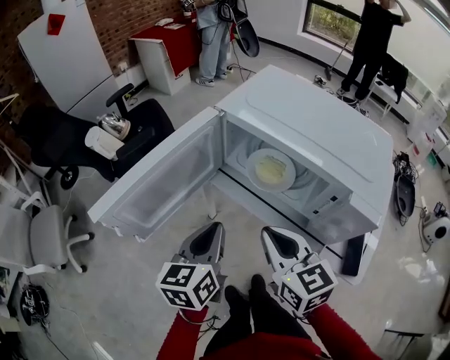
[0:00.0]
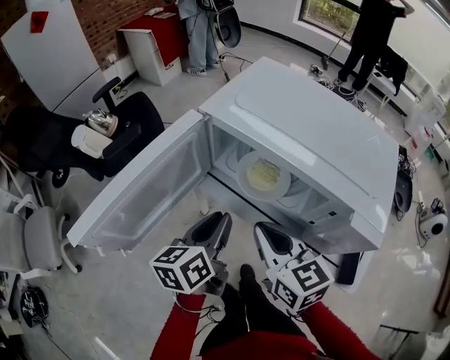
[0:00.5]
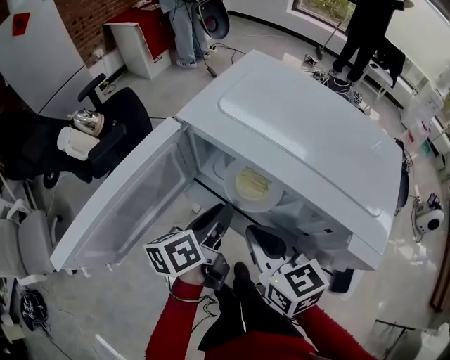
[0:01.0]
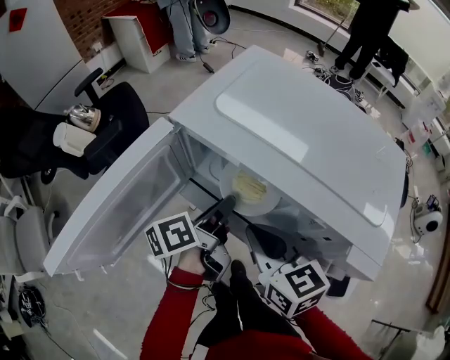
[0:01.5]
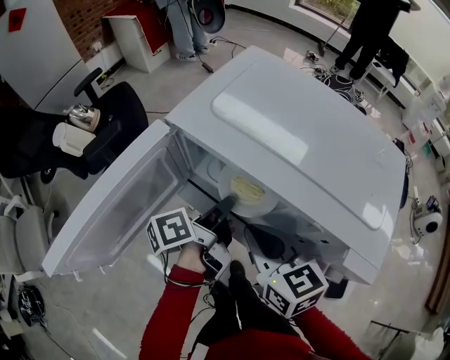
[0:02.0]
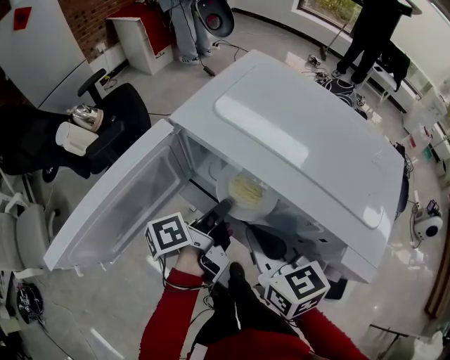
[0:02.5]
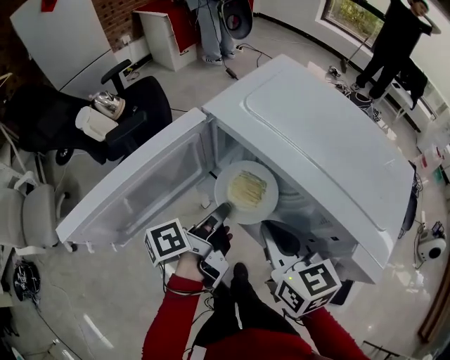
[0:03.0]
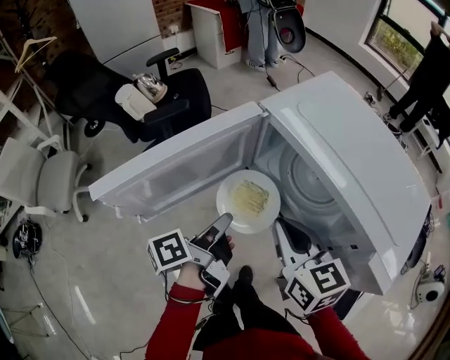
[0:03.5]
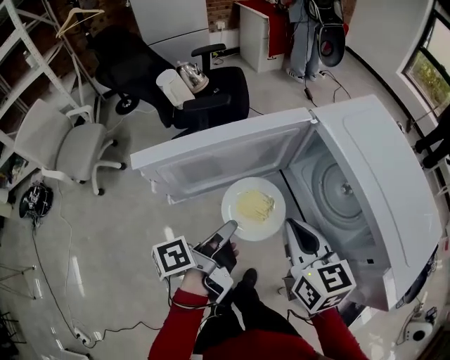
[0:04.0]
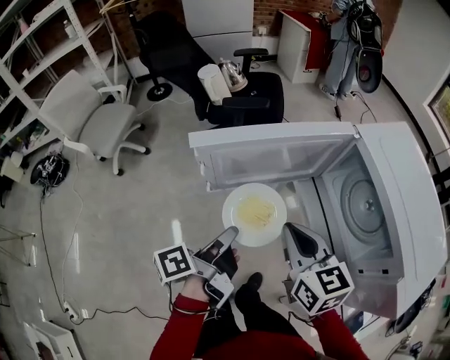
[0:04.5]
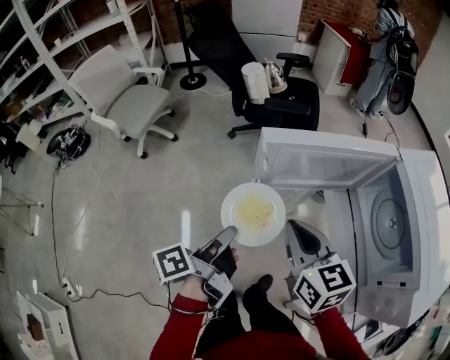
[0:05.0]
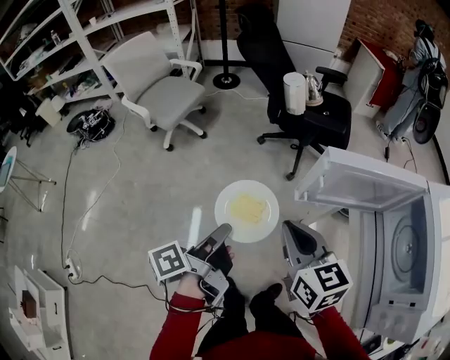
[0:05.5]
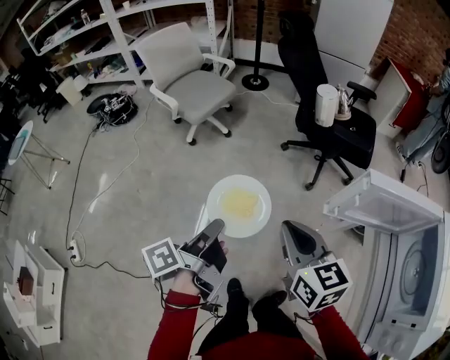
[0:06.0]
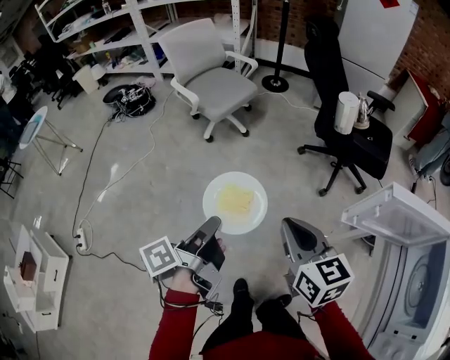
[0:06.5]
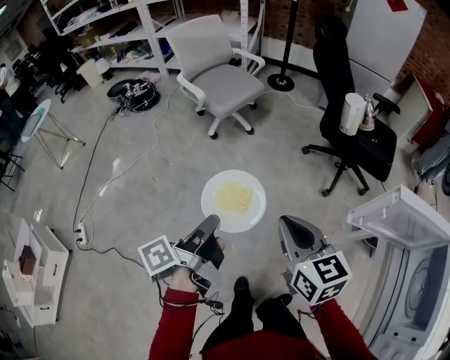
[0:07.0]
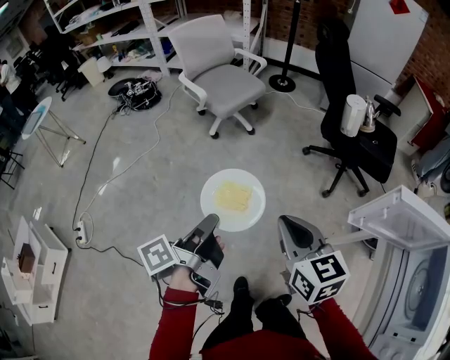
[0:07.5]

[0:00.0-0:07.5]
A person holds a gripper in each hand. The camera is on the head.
0:00.0 to 0:02.0: The left gripper travels forward, to the right and downward by some 20 cm, and rotates around the line of its fingers by approximately 50 degrees, counterclockwise from behind. Meanwhile the right gripper travels forward by about 10 cm.
0:02.0 to 0:04.0: The right gripper ends up some 10 cm from where it was, and swivels about 20 degrees. The left gripper changes place by roughly 20 cm, and swivels roughly 40 degrees.
0:04.0 to 0:05.5: The right gripper moves roughly 30 cm, and turns by approximately 30 degrees. Meanwhile the left gripper ends up roughly 30 cm from where it was, and rotates some 30 degrees.
0:05.5 to 0:07.5: The grippers both shift to the left by about 15 cm. The left gripper changes its angle by about 20 degrees.

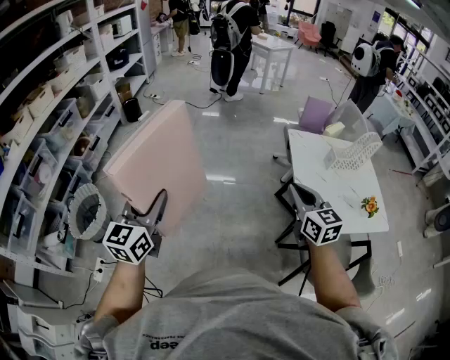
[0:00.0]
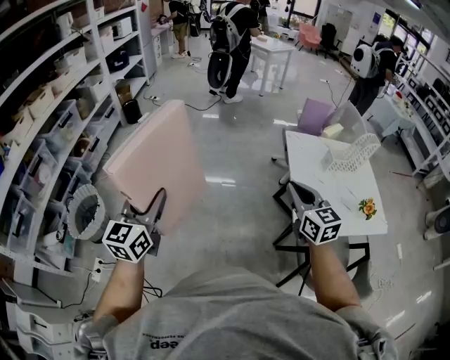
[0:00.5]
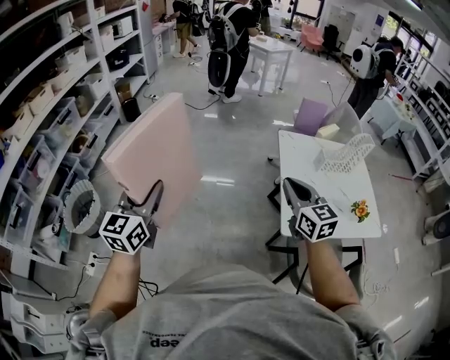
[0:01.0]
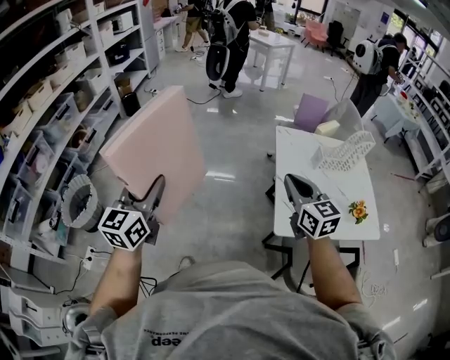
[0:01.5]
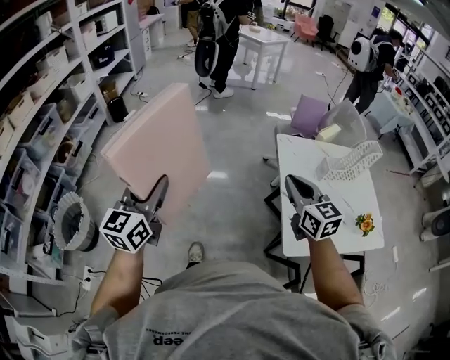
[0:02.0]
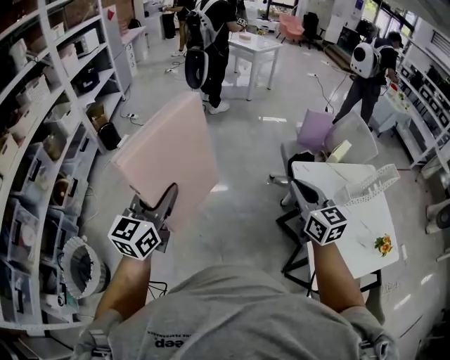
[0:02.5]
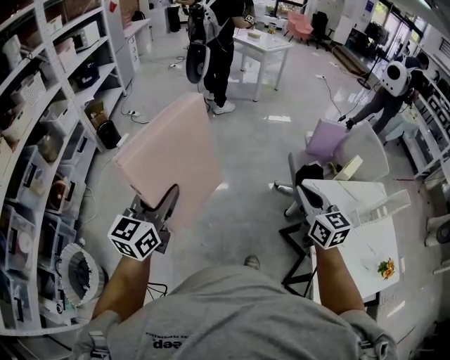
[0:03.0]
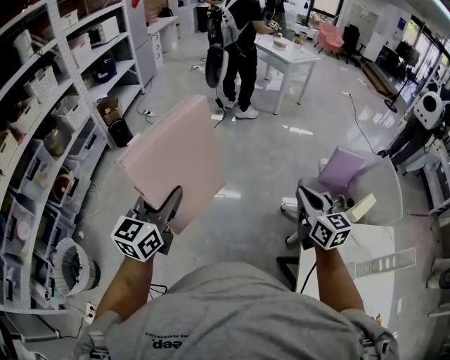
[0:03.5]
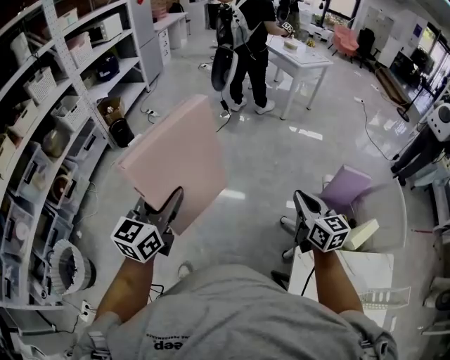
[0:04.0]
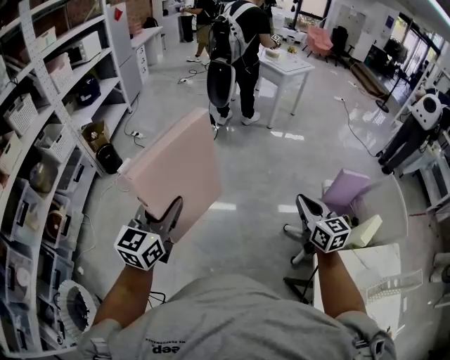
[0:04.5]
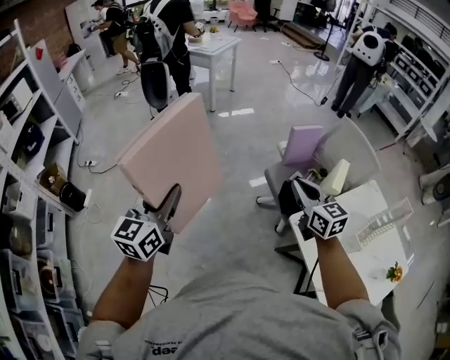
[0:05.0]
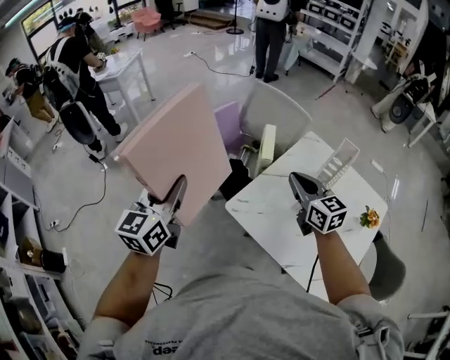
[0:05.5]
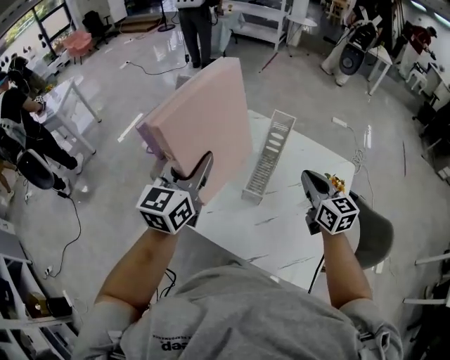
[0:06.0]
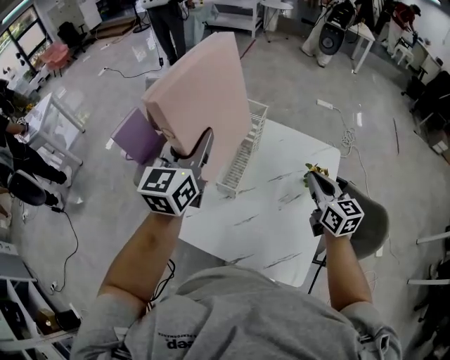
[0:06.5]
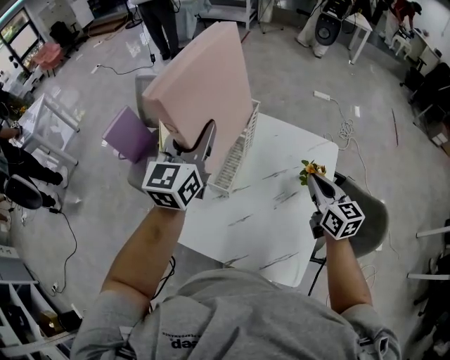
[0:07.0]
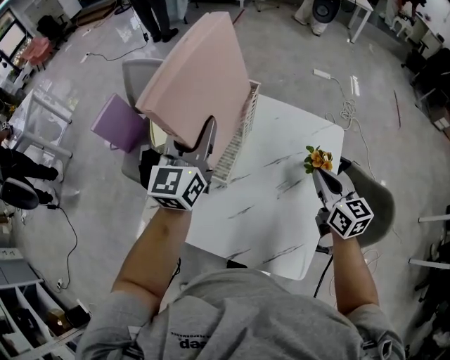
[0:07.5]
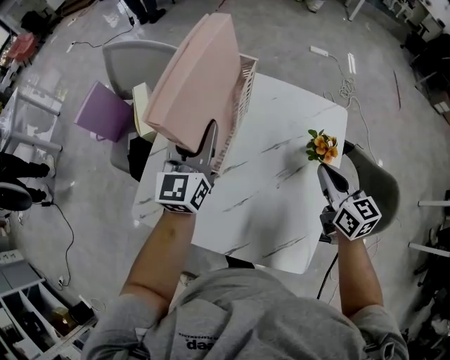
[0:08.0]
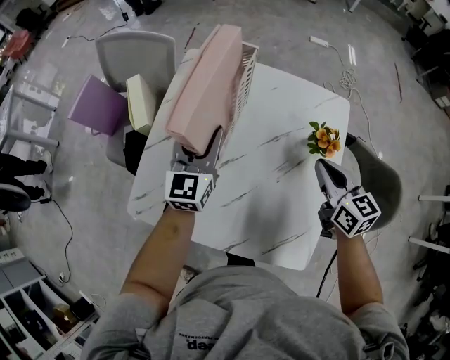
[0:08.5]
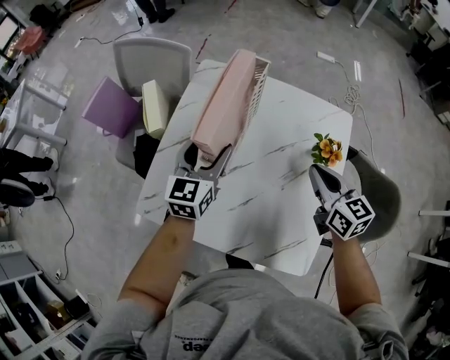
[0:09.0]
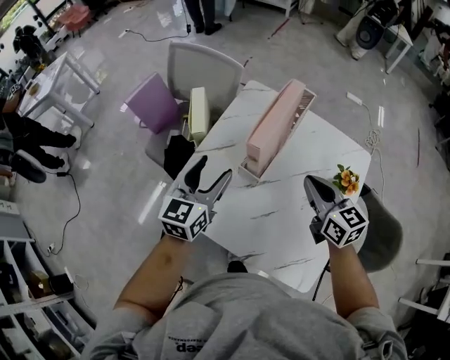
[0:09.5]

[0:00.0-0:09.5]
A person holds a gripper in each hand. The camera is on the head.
0:00.0 to 0:02.0: Both grippers move forward and to the right, some 15 cm.
0:02.0 to 0:04.0: Both grippers are carried forward, about 60 cm.
0:04.0 to 0:05.5: The two grippers travel together, approximately 50 cm. The left gripper changes its angle by some 50 degrees; the right gripper rotates roughly 50 degrees.
0:05.5 to 0:07.5: The two grippers travel together, some 50 cm. The left gripper rotates approximately 30 degrees. Meanwhile the right gripper rotates roughly 30 degrees.
0:07.5 to 0:09.5: The left gripper moves backward, downward and to the left, approximately 15 cm, and opens up. The right gripper heads to the left, covering roughly 15 cm.

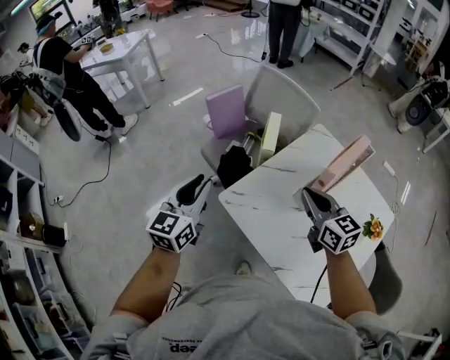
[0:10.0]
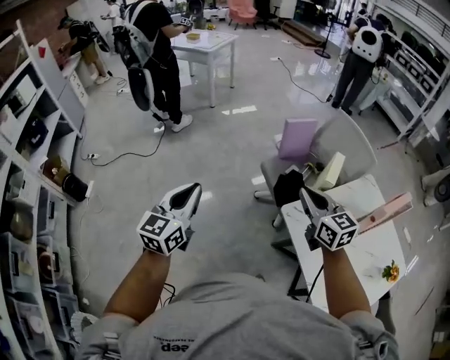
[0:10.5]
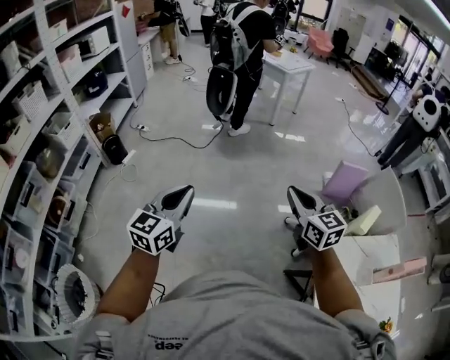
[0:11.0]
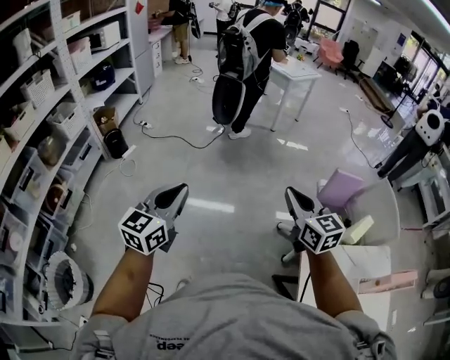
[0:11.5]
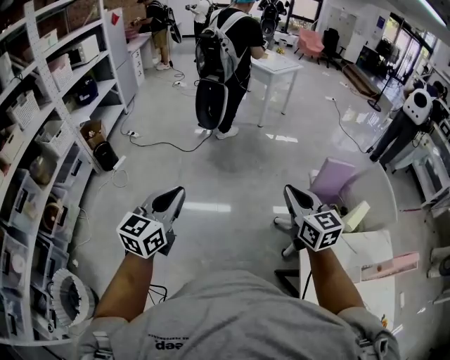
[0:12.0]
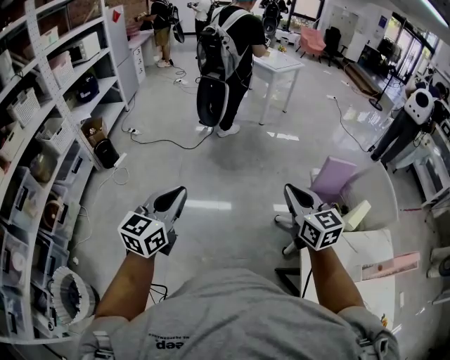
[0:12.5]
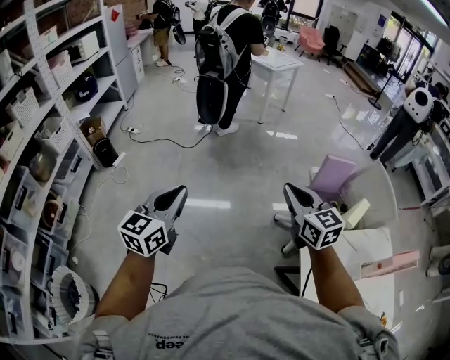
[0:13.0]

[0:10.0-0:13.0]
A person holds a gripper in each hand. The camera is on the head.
0:10.0 to 0:11.5: Both grippers are carried some 50 cm. The right gripper changes its angle by some 40 degrees, while the left gripper rotates approximately 40 degrees.
0:11.5 to 0:13.0: The grippers stay close to where they were, moving slightly.

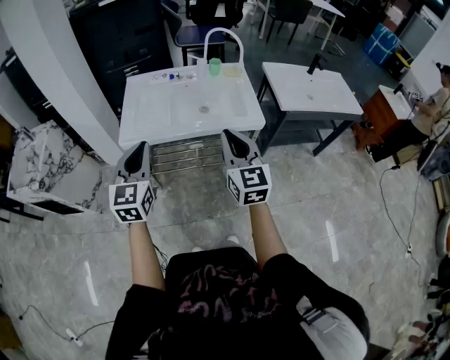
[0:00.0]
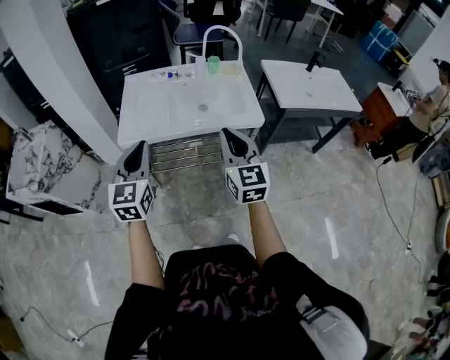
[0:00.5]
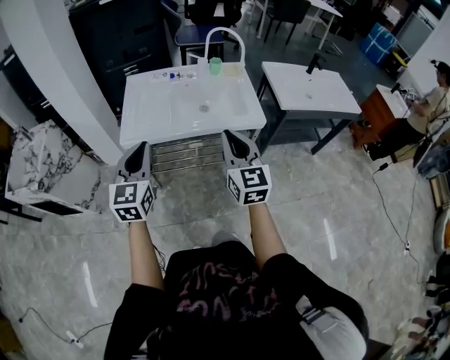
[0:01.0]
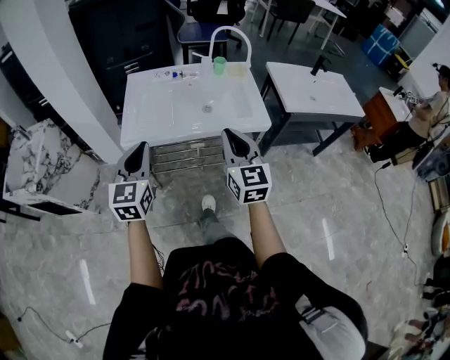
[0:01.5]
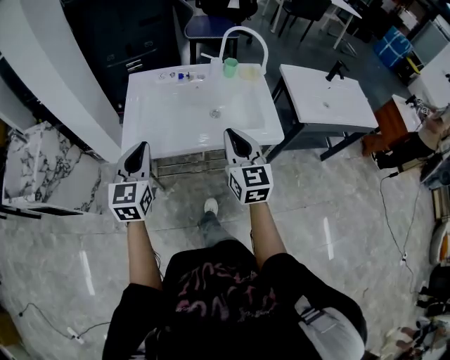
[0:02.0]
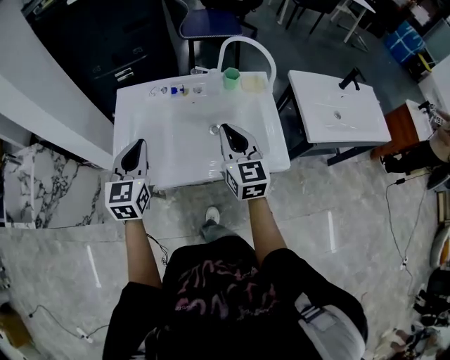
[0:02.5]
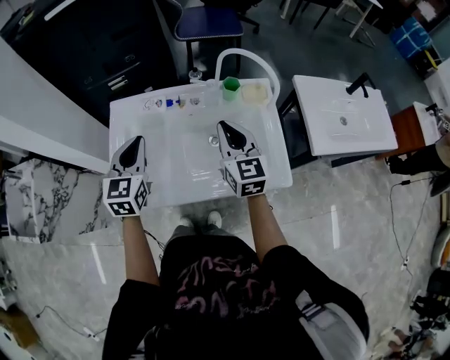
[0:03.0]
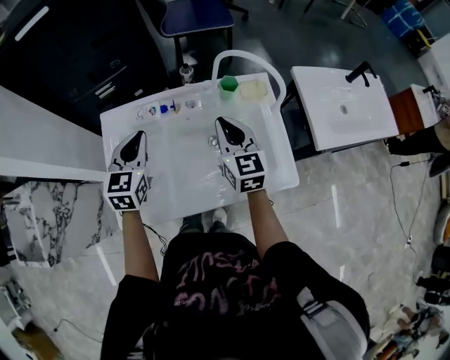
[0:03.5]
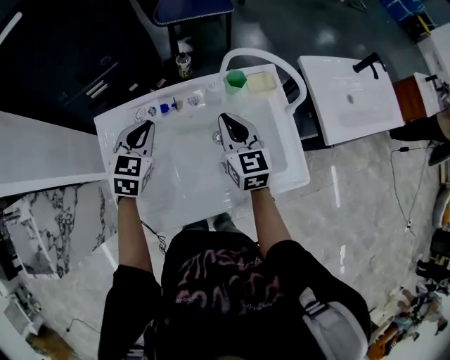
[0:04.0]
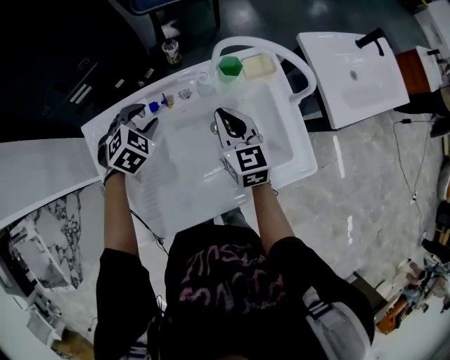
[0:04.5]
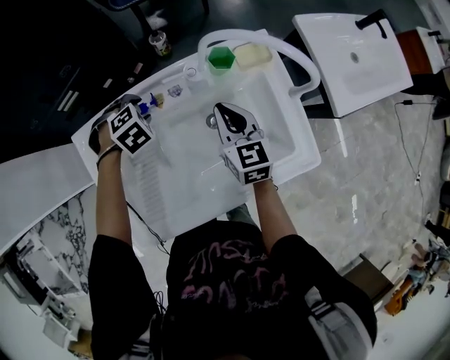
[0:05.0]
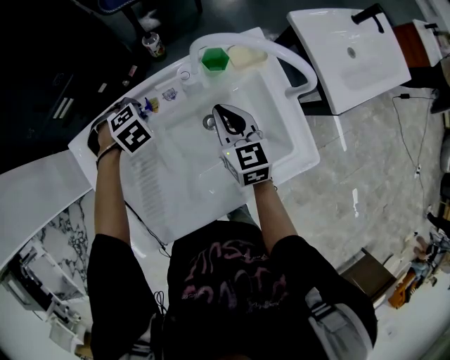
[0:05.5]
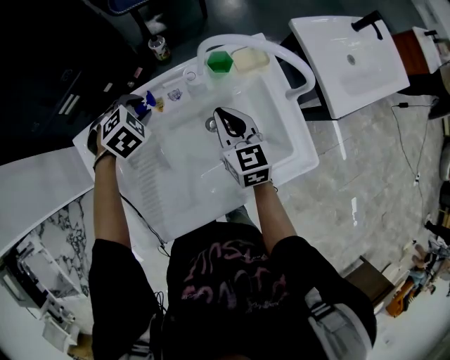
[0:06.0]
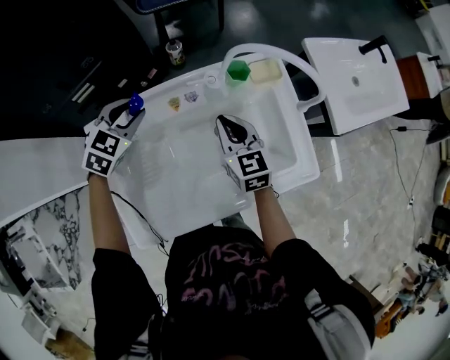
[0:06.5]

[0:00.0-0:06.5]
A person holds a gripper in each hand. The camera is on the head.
0:00.0 to 0:02.0: Both grippers move forward, approximately 15 cm.
0:02.0 to 0:04.5: The left gripper moves forward and downward, roughly 50 cm, points its fingers roughly 50 degrees further downward, and opens its fingers; the right gripper moves forward, some 40 cm.
0:04.5 to 0:06.5: The left gripper shifts by some 5 cm.
